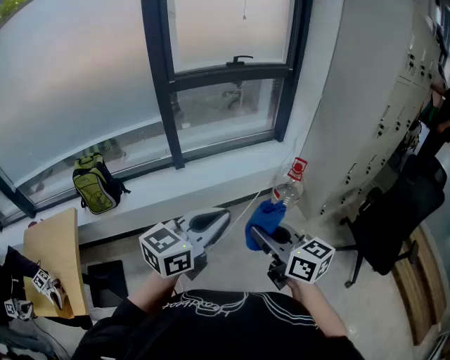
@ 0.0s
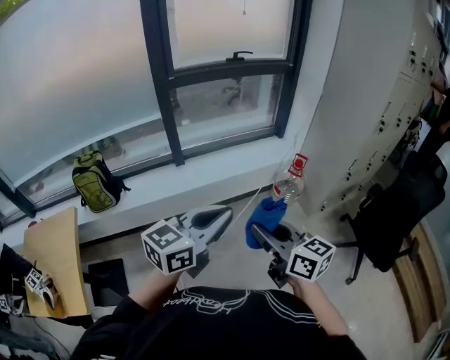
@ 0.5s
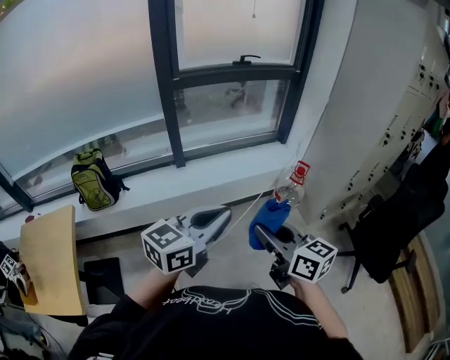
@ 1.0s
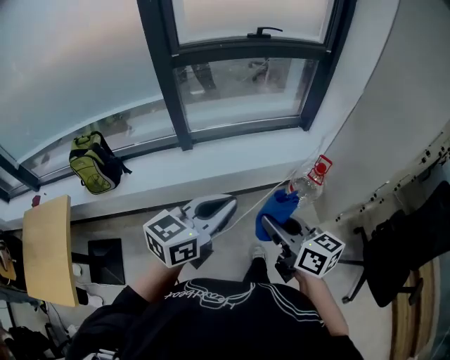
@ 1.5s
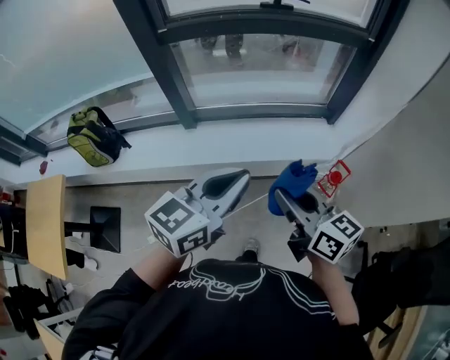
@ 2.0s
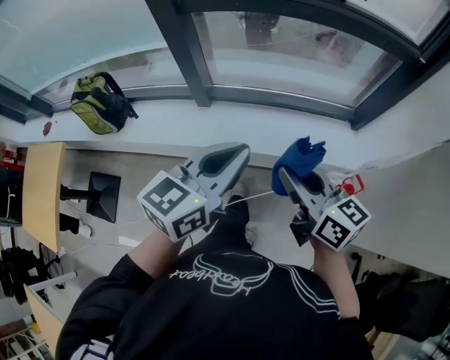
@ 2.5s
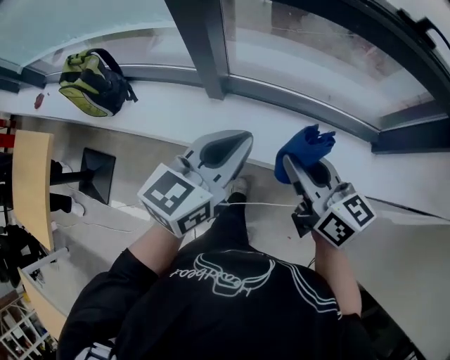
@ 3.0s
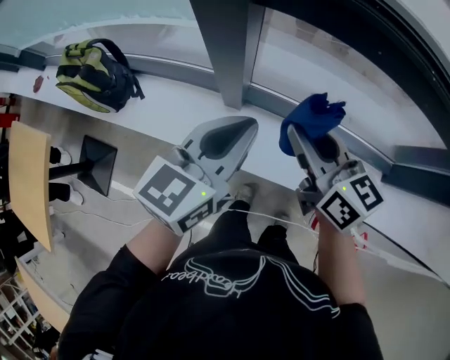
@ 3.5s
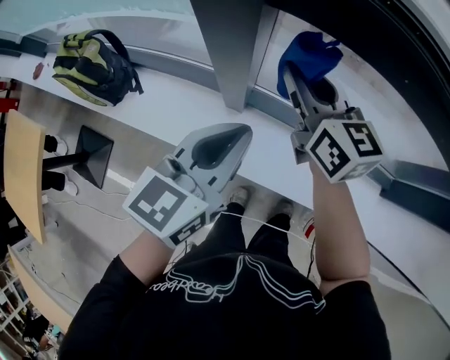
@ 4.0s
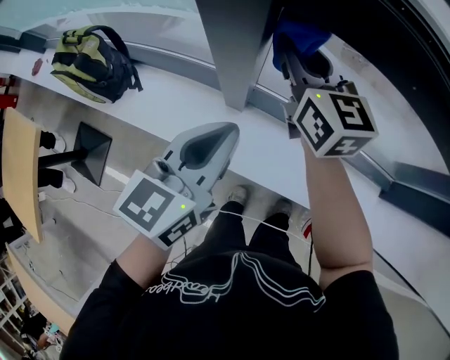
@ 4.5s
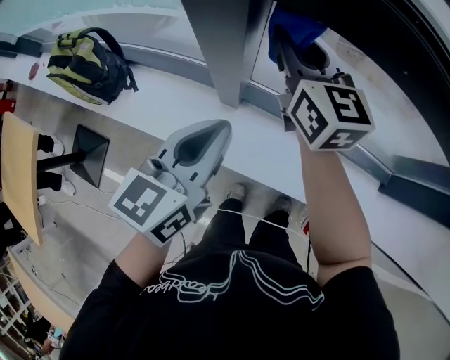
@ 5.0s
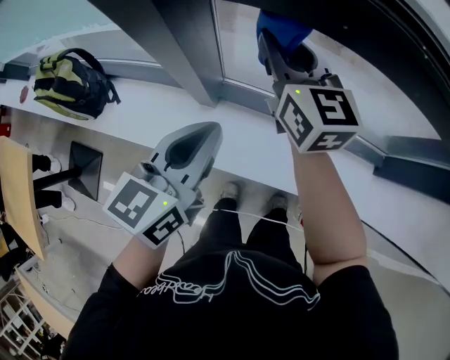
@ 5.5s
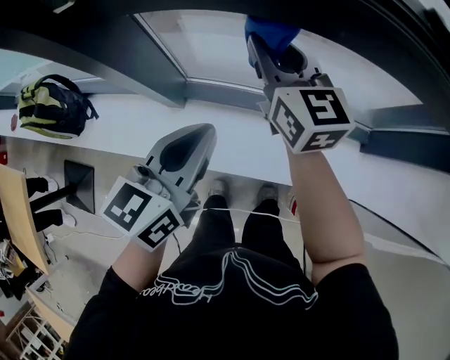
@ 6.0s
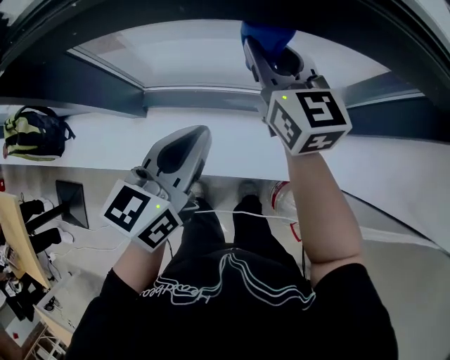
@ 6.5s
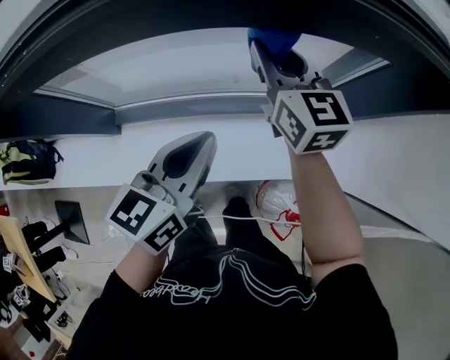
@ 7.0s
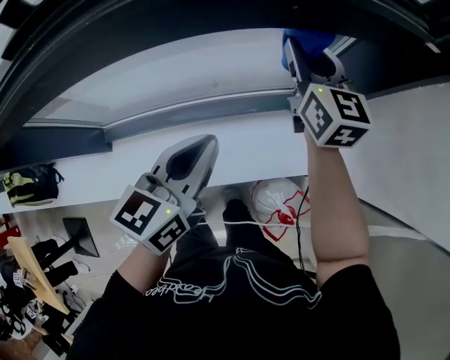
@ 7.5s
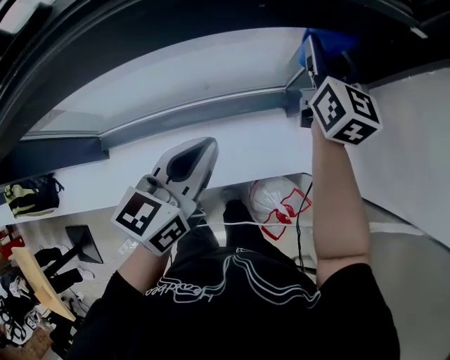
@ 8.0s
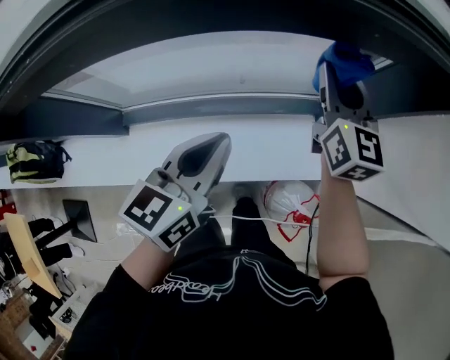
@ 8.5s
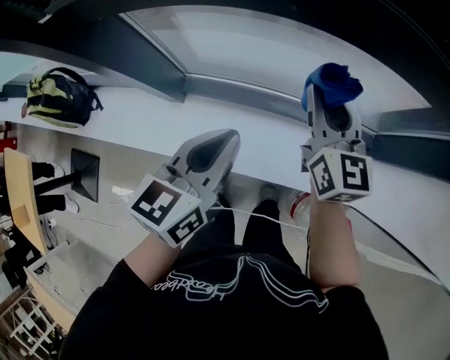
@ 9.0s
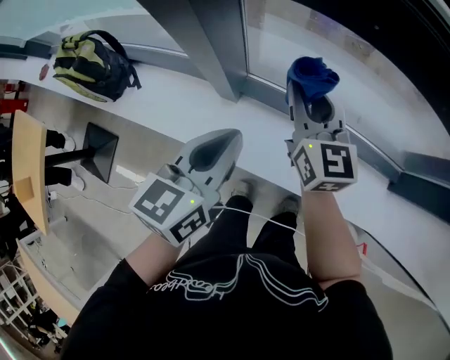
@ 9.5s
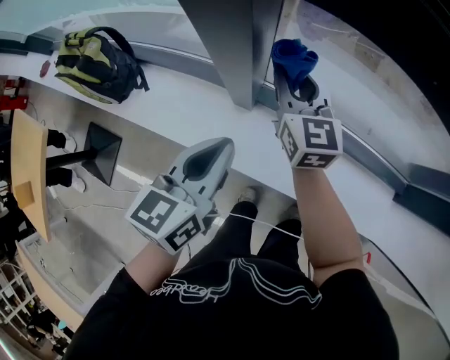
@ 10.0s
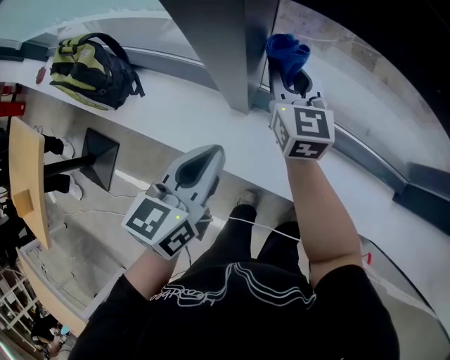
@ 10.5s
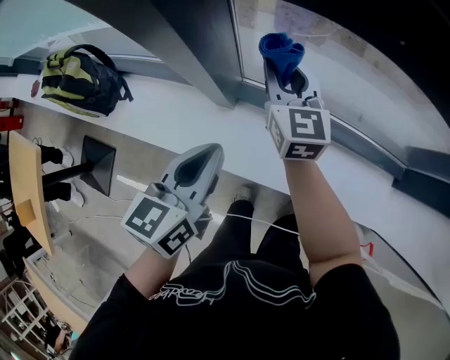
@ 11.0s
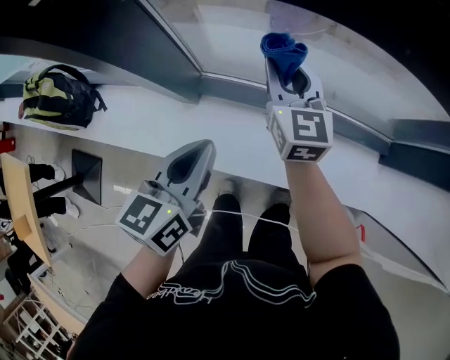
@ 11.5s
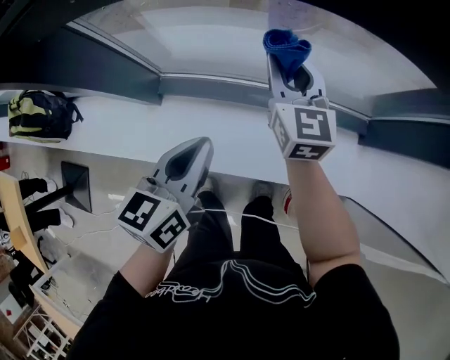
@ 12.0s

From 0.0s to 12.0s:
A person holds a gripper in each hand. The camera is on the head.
From 0.0s to 2.0s: Both grippers are carried forward, roughly 50 cm. The left gripper turns by roughly 20 degrees.
From 2.0s to 4.0s: The two grippers travel together, forward and to the left, roughly 50 cm. The right gripper rotates some 20 degrees. The left gripper heads downward, covering roughly 15 cm, and rotates some 30 degrees.
From 4.0s to 6.0s: Both grippers move to the right, approximately 15 cm.
From 6.0s to 8.0s: The left gripper shifts by some 40 cm, and changes its angle by approximately 20 degrees. The right gripper ends up some 60 cm from where it was, and changes its angle by approximately 40 degrees.
From 8.0s to 10.0s: The two grippers travel together, about 70 cm. The left gripper rotates about 40 degrees. Meanwhile the right gripper changes its angle by about 40 degrees.
From 10.0s to 12.0s: The two grippers go approximately 30 cm to the right.

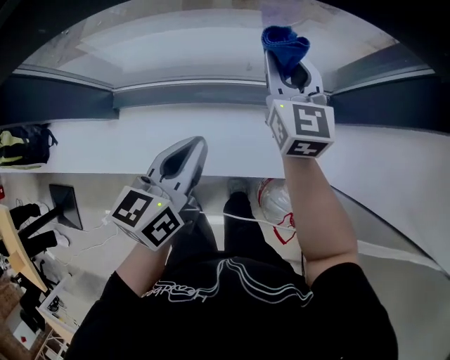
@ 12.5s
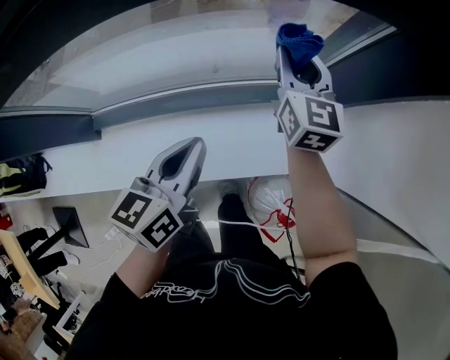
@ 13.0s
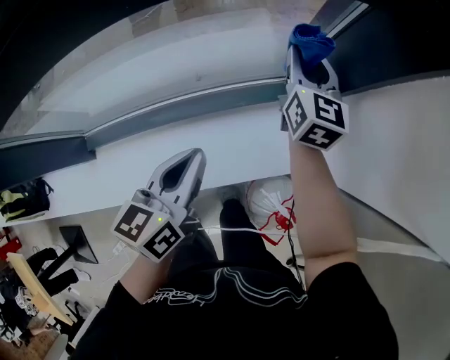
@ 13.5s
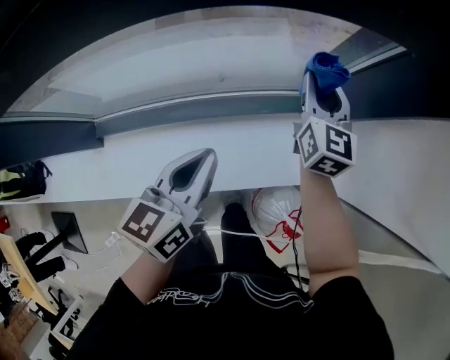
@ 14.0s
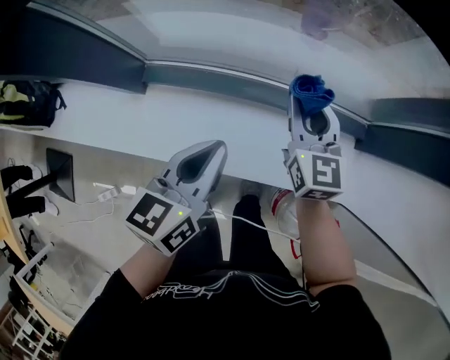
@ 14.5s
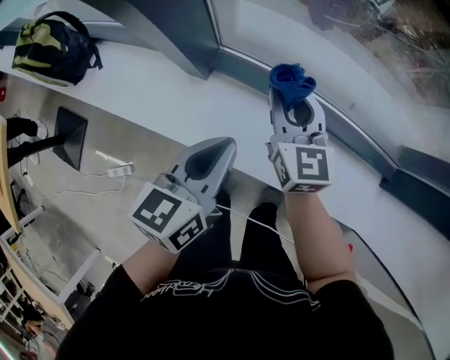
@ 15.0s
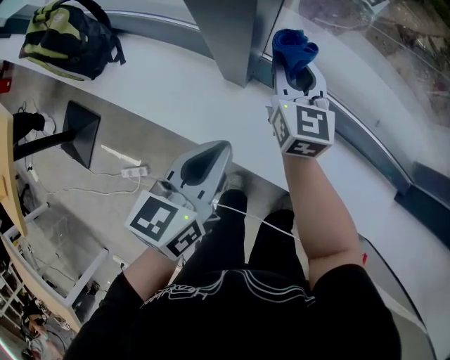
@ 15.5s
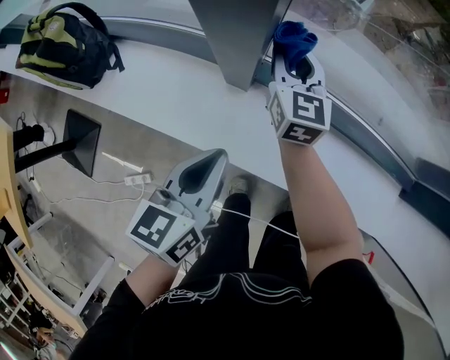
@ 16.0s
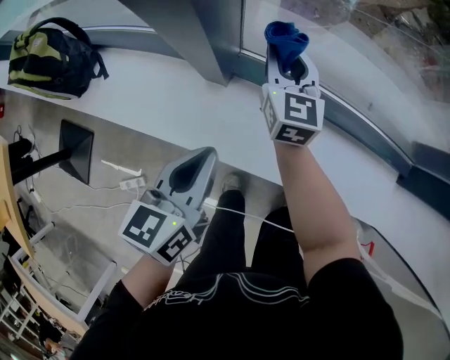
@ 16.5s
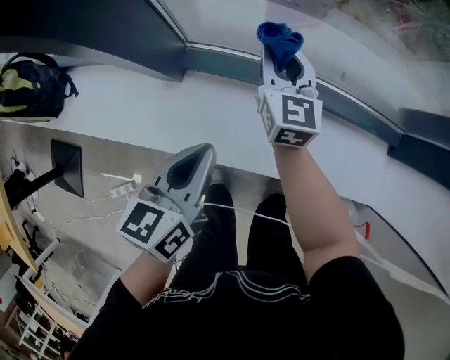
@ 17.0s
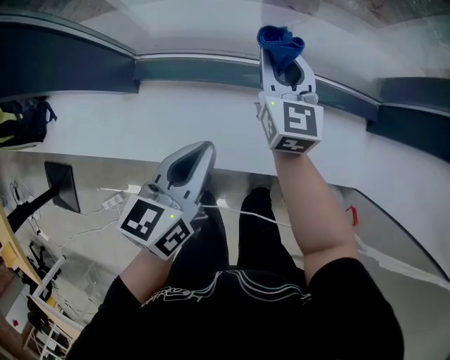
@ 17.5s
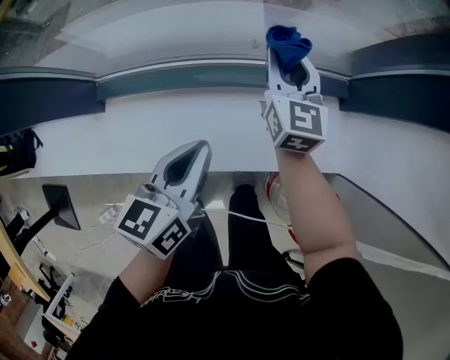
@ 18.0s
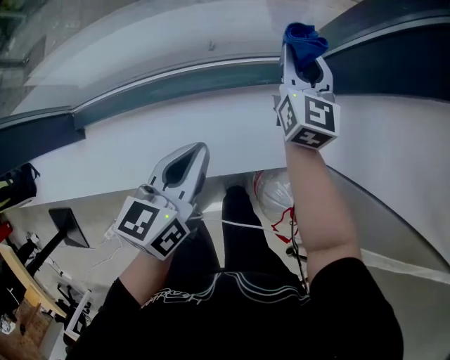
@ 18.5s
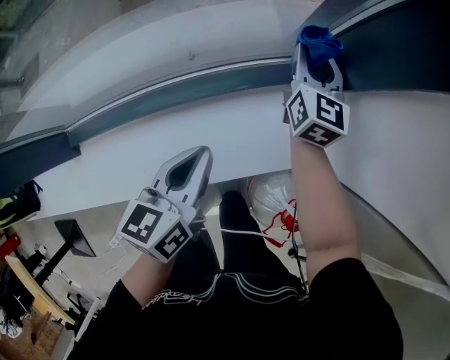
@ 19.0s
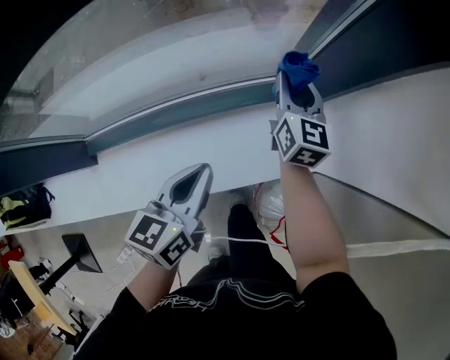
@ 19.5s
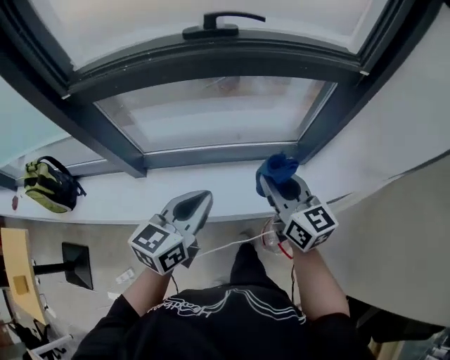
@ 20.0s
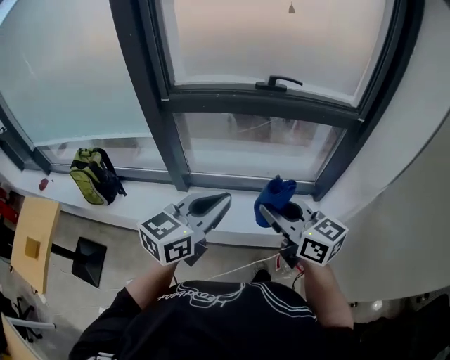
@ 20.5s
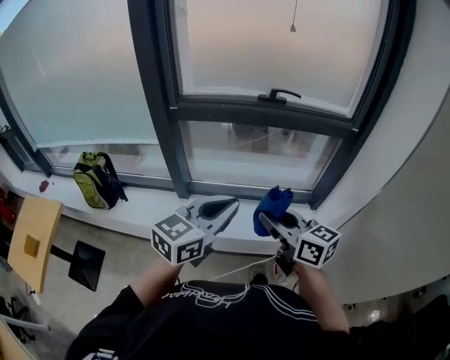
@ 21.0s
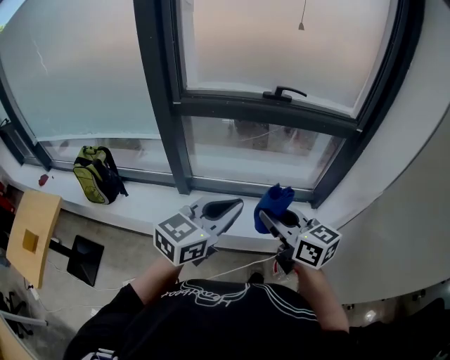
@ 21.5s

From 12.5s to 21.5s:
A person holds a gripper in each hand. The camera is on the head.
From 12.5s to 14.5s: The right gripper heads downward and backward, covering approximately 10 cm, and reaches about 25 cm to the right, then returns, while the left gripper goes some 10 cm to the left and downward.
From 14.5s to 17.0s: The two grippers go about 20 cm to the left.
From 17.0s to 19.5s: The left gripper ends up approximately 40 cm from where it was, and changes its angle by about 30 degrees; the right gripper changes place by roughly 50 cm, and changes its angle by approximately 30 degrees.
From 19.5s to 21.5s: The left gripper goes approximately 40 cm upward, and changes its angle by about 30 degrees; the right gripper moves some 70 cm, and turns by approximately 60 degrees.

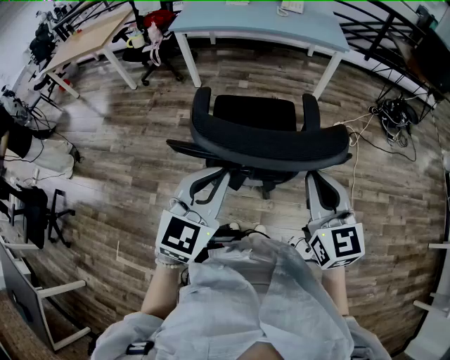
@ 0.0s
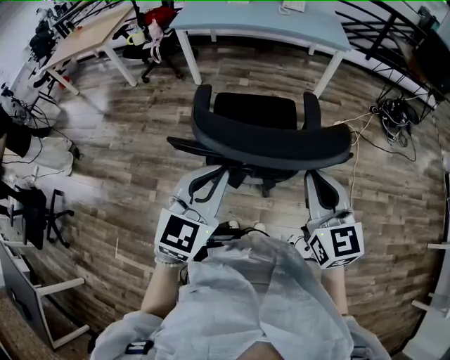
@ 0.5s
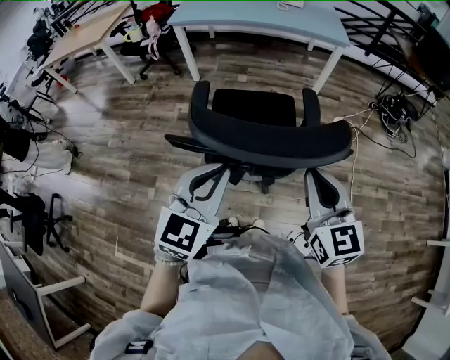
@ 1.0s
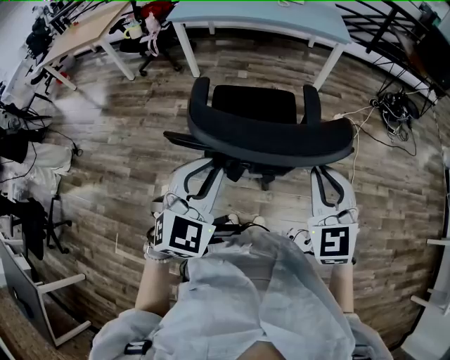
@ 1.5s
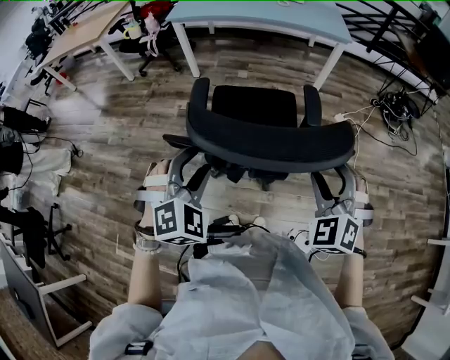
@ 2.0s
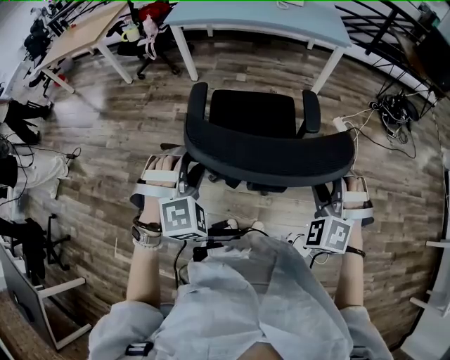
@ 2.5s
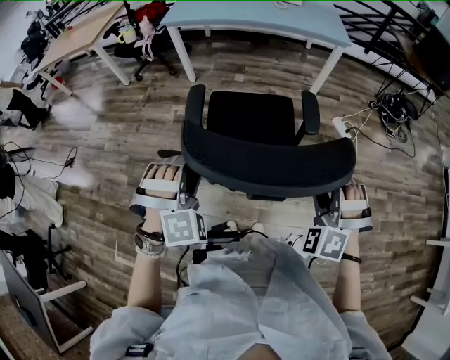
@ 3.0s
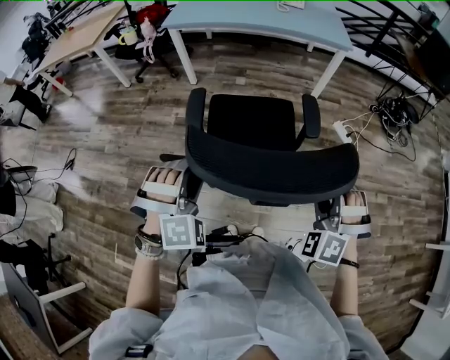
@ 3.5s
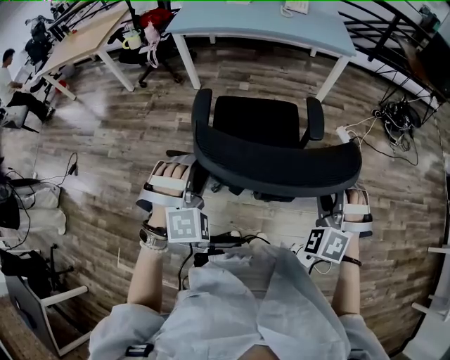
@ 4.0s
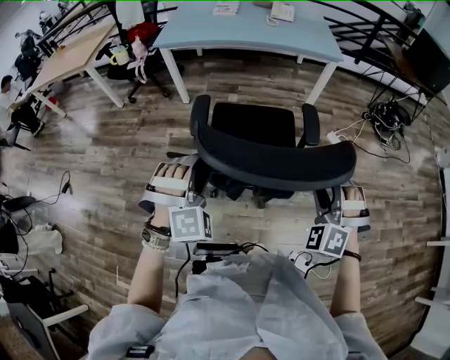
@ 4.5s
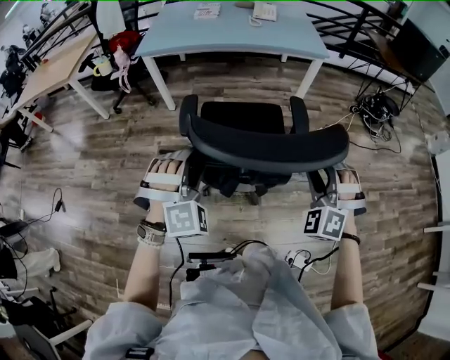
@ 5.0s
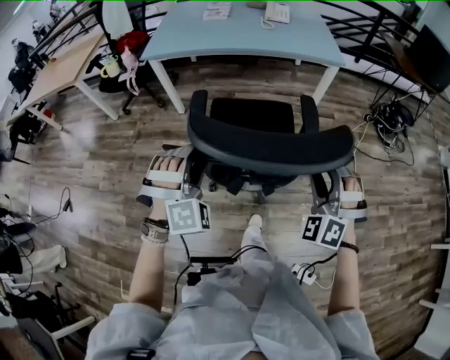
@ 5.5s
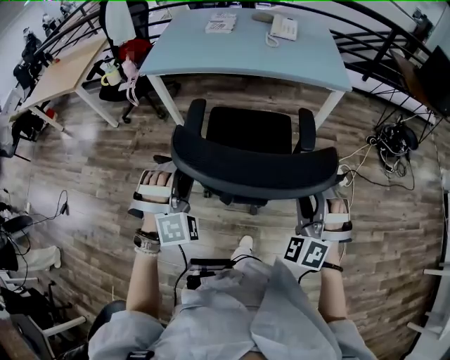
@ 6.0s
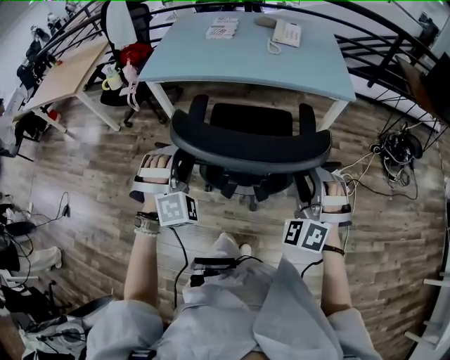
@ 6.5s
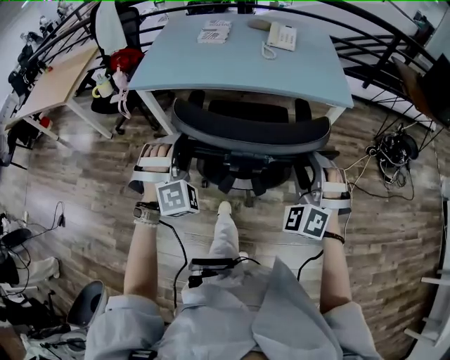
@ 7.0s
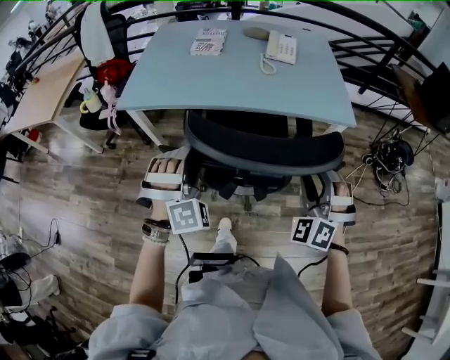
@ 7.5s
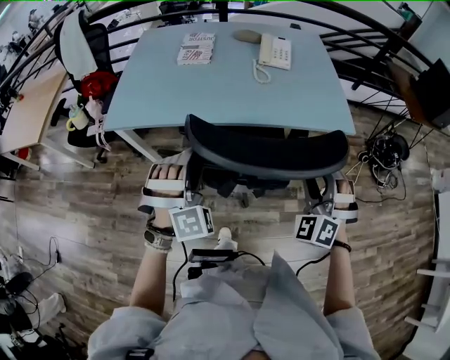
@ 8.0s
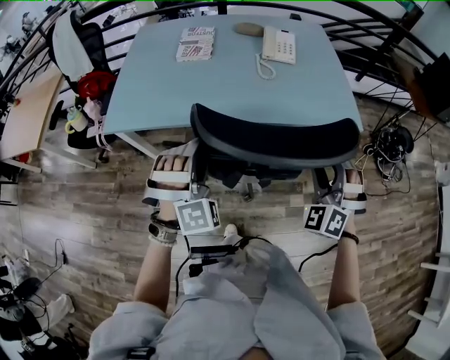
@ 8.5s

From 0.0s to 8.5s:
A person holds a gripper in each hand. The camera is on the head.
From 0.0s to 2.0s: The right gripper moves approximately 5 cm, rolls counterclockwise, seen from behind, by some 50 degrees, and opens its fingers. Meanwhile the left gripper shifts some 5 cm downward, rotates some 50 degrees, and opens.
From 2.0s to 4.0s: Both grippers travel together forward, approximately 5 cm. The left gripper rotates roughly 20 degrees.
From 4.0s to 6.5s: The grippers both shift forward by about 35 cm.
From 6.5s to 8.5s: Both grippers travel together forward, about 30 cm.
